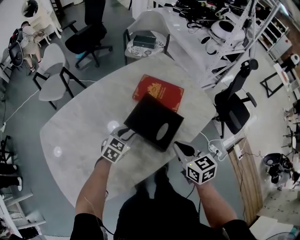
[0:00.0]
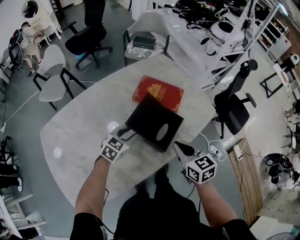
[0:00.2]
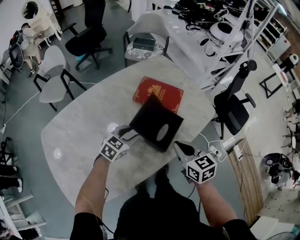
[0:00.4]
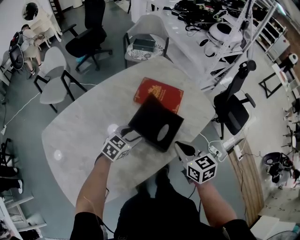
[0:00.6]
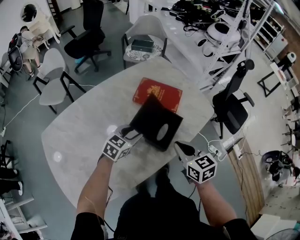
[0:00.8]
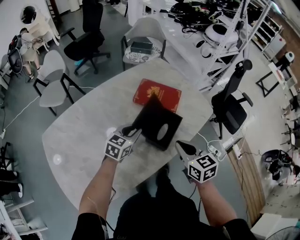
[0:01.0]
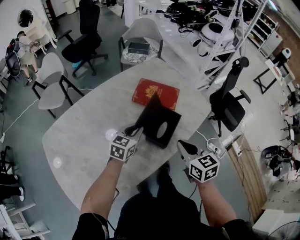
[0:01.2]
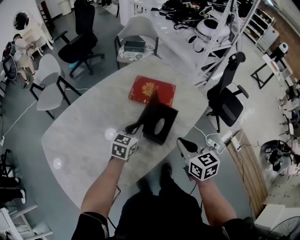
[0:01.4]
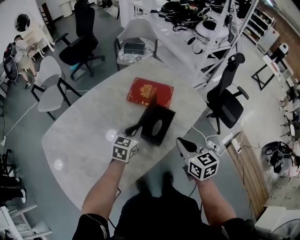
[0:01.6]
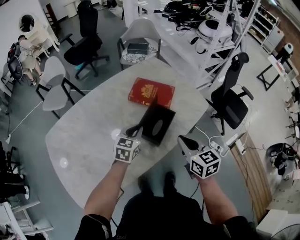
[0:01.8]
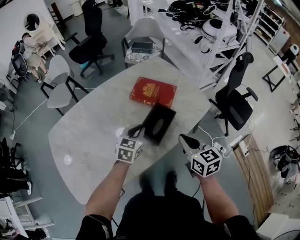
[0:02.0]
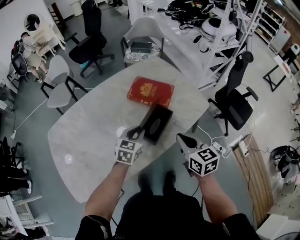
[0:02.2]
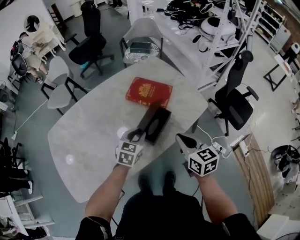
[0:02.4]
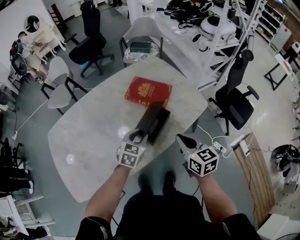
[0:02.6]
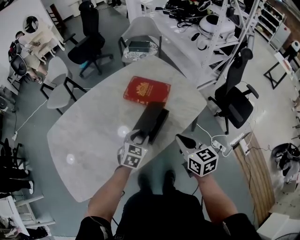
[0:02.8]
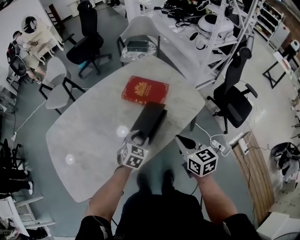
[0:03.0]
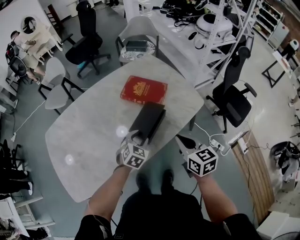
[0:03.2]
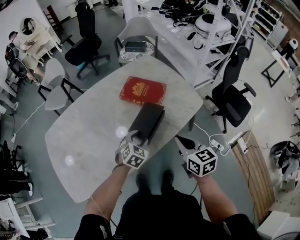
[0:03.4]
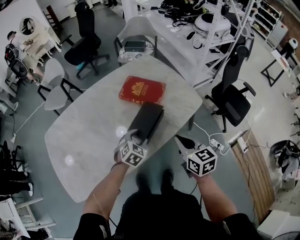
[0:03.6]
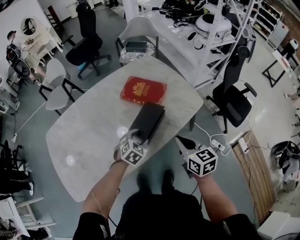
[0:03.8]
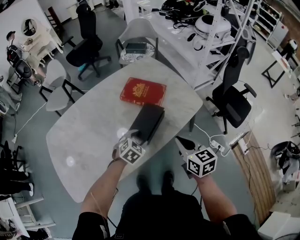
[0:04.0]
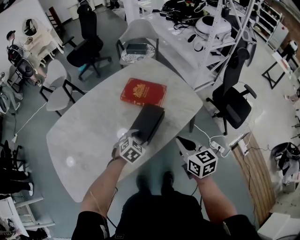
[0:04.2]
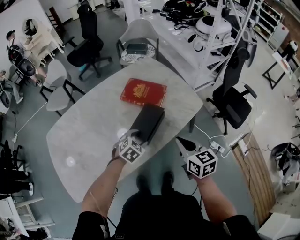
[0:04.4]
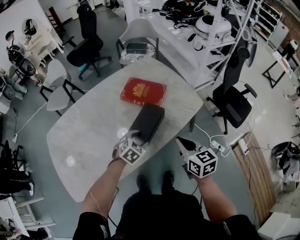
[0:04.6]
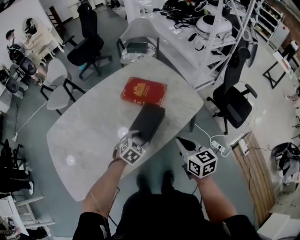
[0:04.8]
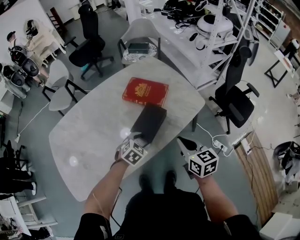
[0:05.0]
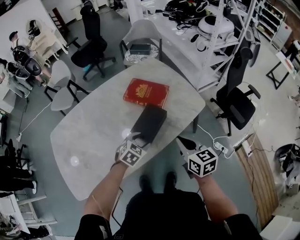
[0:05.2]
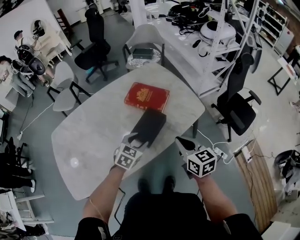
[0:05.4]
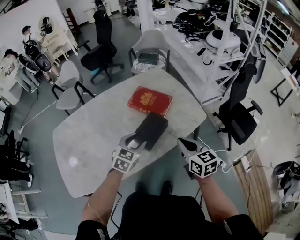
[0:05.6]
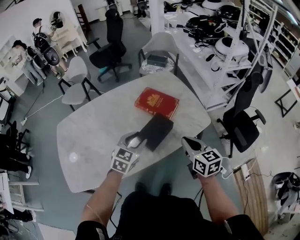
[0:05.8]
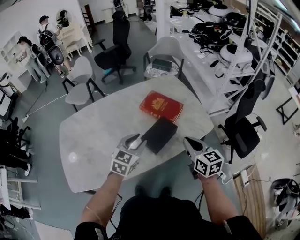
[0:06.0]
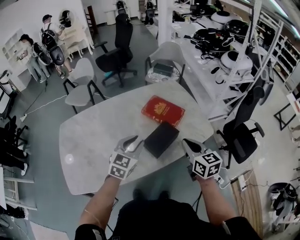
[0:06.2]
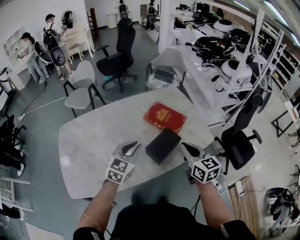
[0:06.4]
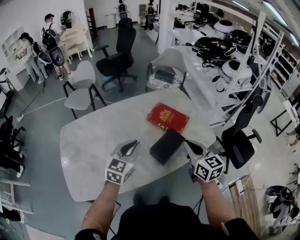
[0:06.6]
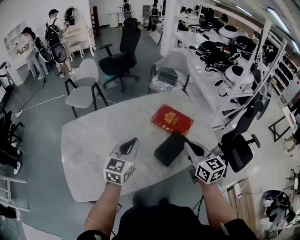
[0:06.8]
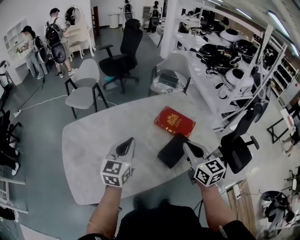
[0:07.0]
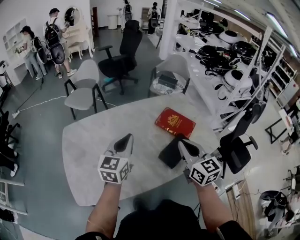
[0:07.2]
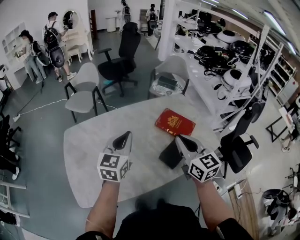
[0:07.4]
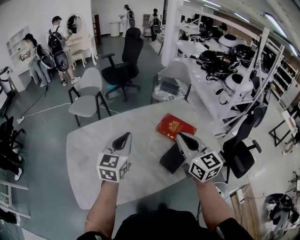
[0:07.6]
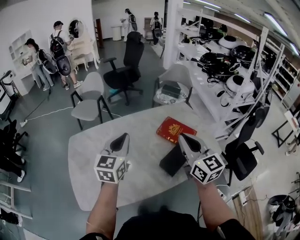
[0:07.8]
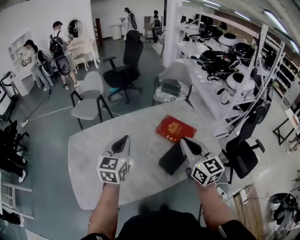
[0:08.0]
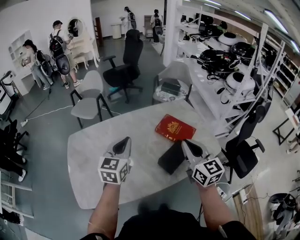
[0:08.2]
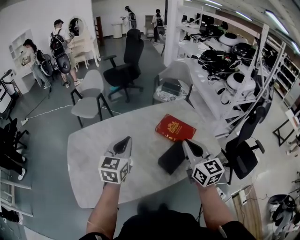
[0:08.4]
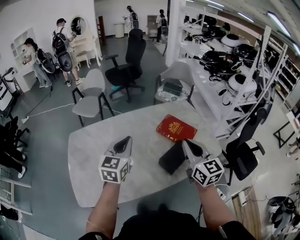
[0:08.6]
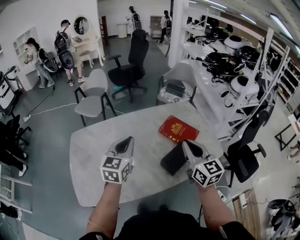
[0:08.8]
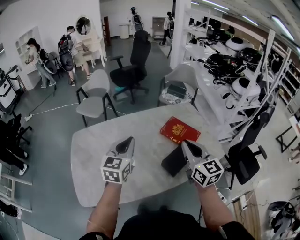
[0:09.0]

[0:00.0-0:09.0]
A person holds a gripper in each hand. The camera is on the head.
0:00.0 to 0:01.6: The left gripper heads upward and to the right, covering some 10 cm, and opens and closes again. Meanwhile the right gripper shifts by some 5 cm.
0:01.6 to 0:03.0: The left gripper heads to the right and downward, covering roughly 10 cm, swivels roughly 20 degrees, and opens its fingers; the right gripper goes approximately 10 cm to the right.
0:03.0 to 0:04.4: The grippers make only small movements.
0:04.4 to 0:06.0: The left gripper goes some 15 cm upward, turns by roughly 40 degrees, and closes its fingers; the right gripper changes place by some 5 cm.
0:06.0 to 0:07.6: The two grippers go about 25 cm to the left and upward. The right gripper changes its angle by approximately 20 degrees, while the left gripper rotates roughly 20 degrees, and closes up.

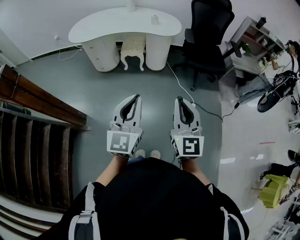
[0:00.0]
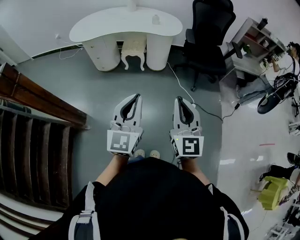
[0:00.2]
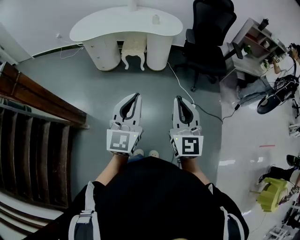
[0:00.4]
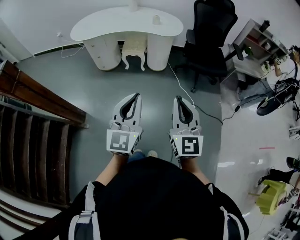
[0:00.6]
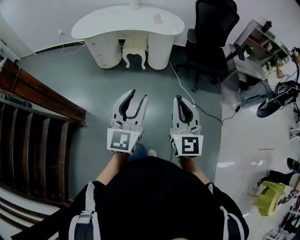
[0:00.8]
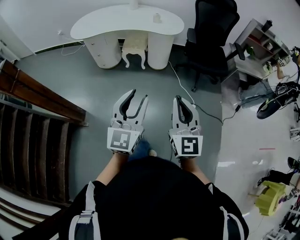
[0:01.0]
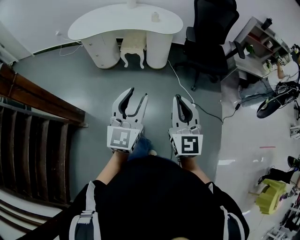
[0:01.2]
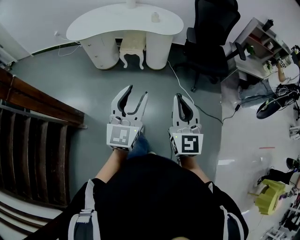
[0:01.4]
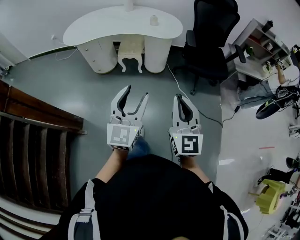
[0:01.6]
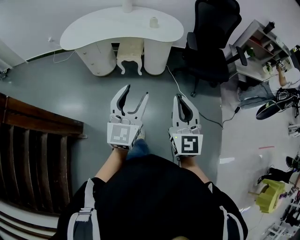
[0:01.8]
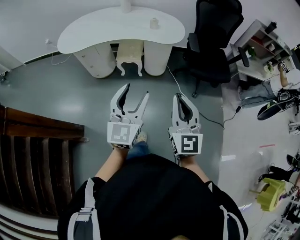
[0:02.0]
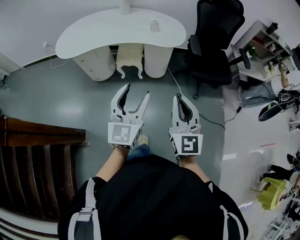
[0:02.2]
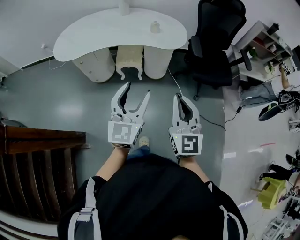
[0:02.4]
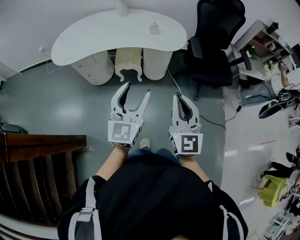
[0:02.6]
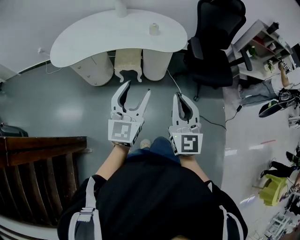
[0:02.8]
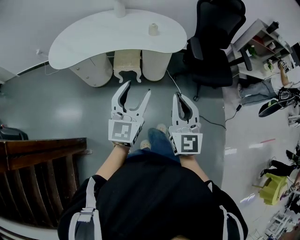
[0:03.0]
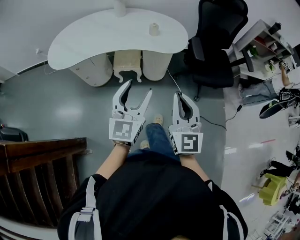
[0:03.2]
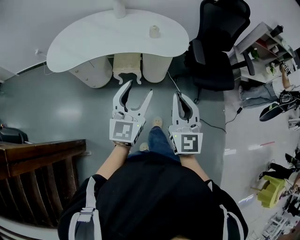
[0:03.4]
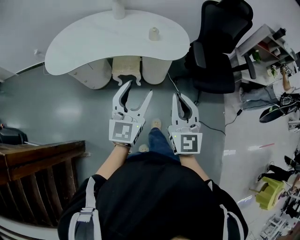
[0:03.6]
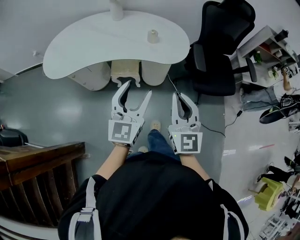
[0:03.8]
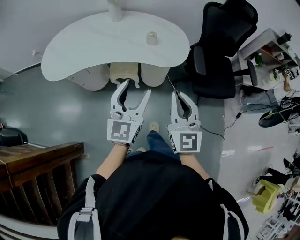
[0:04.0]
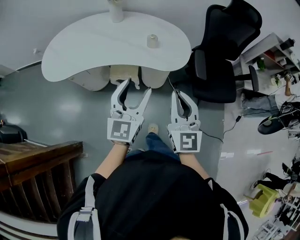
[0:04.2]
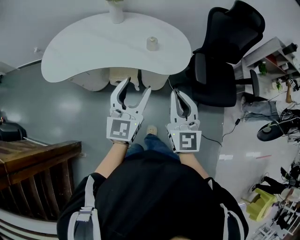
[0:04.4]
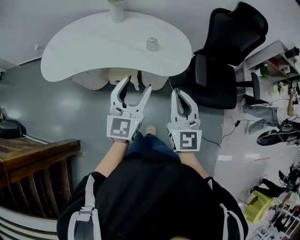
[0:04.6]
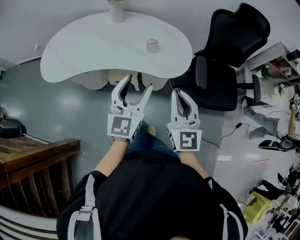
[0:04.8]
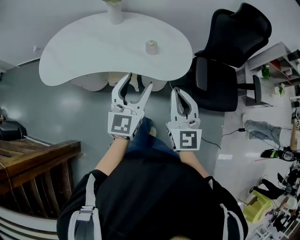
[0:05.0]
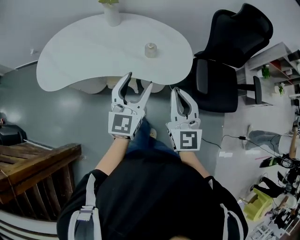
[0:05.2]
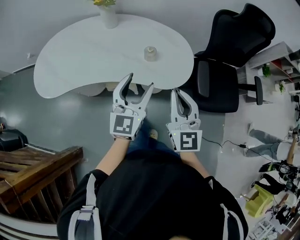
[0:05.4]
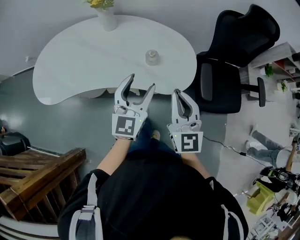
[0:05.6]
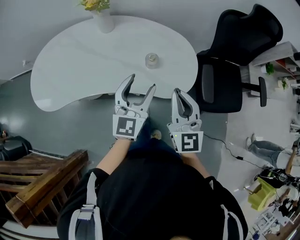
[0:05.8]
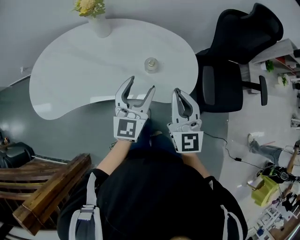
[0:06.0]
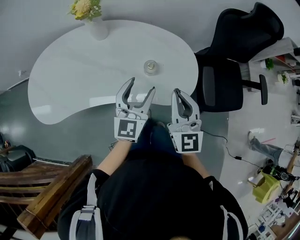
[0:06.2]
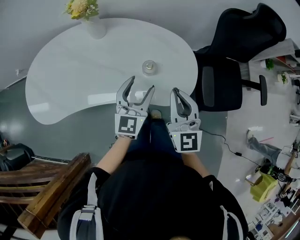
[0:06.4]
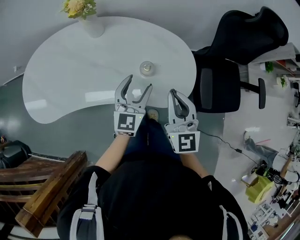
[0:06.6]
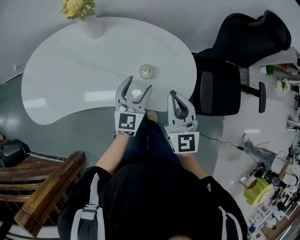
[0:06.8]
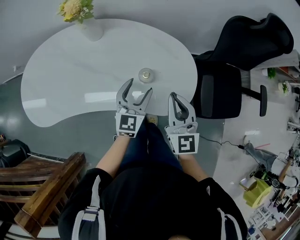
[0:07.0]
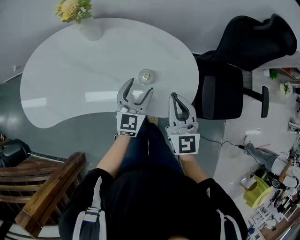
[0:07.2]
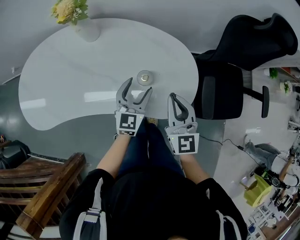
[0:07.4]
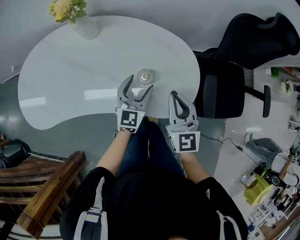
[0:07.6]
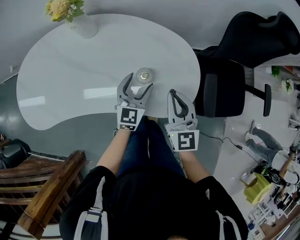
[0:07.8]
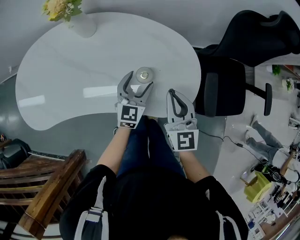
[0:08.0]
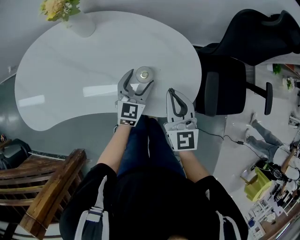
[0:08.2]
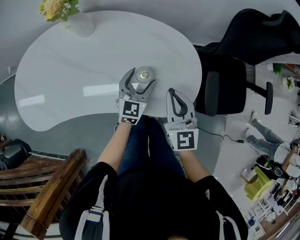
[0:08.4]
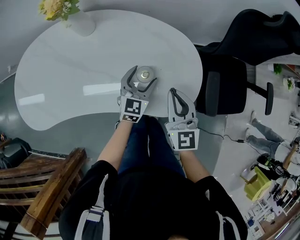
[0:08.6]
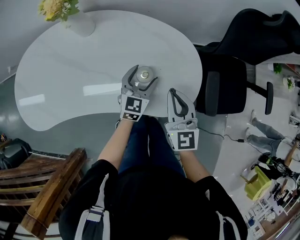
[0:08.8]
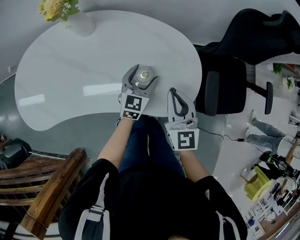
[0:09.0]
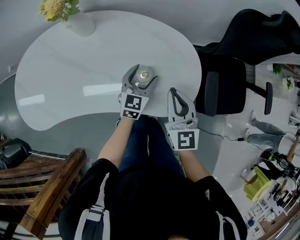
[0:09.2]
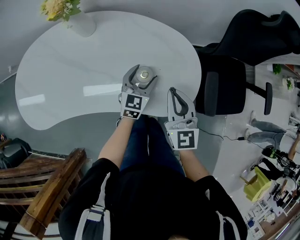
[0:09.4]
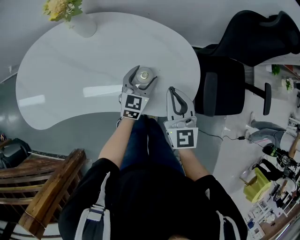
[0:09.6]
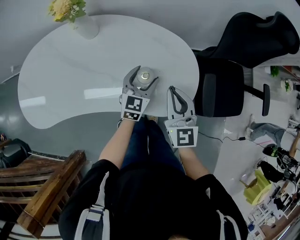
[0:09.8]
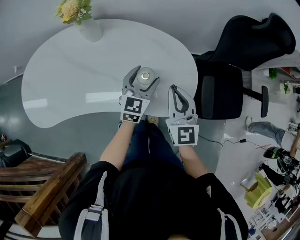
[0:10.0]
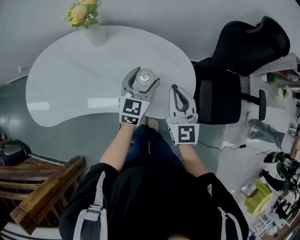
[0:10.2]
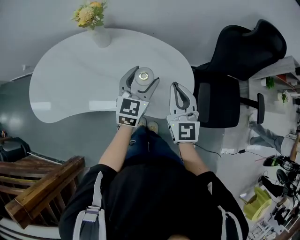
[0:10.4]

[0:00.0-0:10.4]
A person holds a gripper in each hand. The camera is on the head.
0:00.0 to 0:01.4: Both grippers travel together forward, about 5 cm. The left gripper opens its fingers.
0:01.4 to 0:03.0: The two grippers go some 30 cm forward.
0:03.0 to 0:04.4: The grippers both shift forward by approximately 20 cm.
0:04.4 to 0:06.0: Both grippers move forward, roughly 25 cm.
0:06.0 to 0:07.4: Both grippers travel together downward and forward, roughly 15 cm.
0:07.4 to 0:09.0: The left gripper is displaced downward by approximately 5 cm.
0:09.0 to 0:10.4: The right gripper moves upward, about 10 cm. The left gripper heads upward, covering about 20 cm.

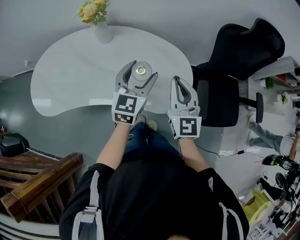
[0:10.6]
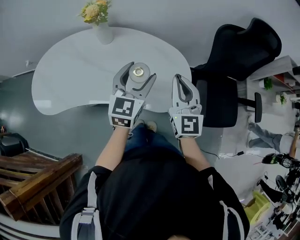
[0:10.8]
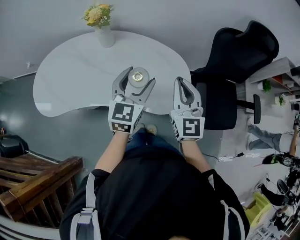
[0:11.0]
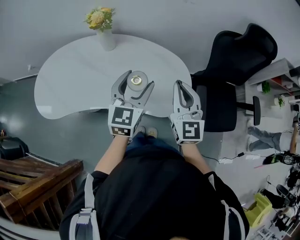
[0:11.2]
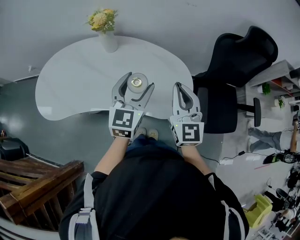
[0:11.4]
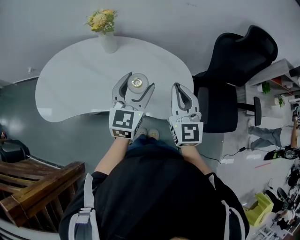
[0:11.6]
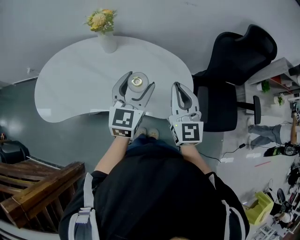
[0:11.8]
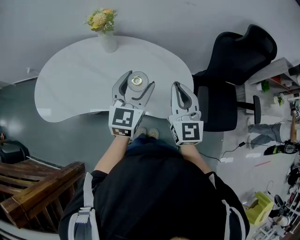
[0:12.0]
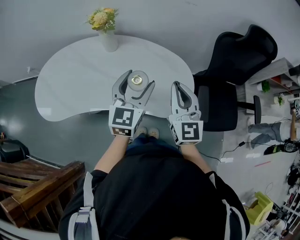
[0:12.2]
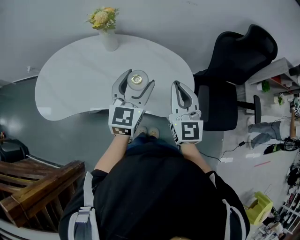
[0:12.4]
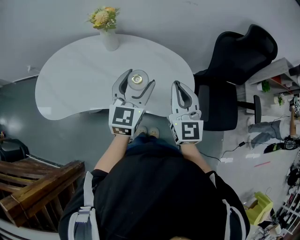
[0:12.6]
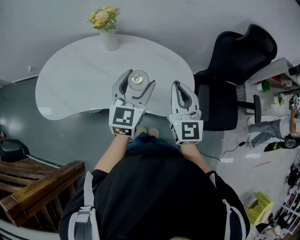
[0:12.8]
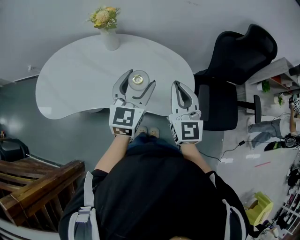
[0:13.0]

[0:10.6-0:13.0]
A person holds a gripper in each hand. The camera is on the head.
0:10.6 to 0:11.8: The right gripper ends up roughly 5 cm from where it was. The left gripper is displaced upward by some 5 cm.
0:11.8 to 0:13.0: The grippers stay close to where they were, moving slightly.

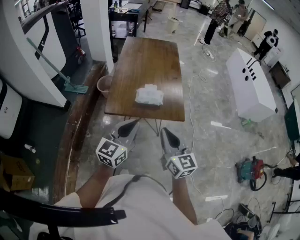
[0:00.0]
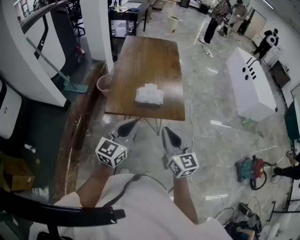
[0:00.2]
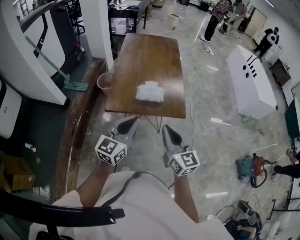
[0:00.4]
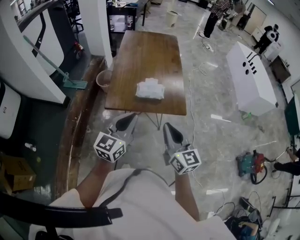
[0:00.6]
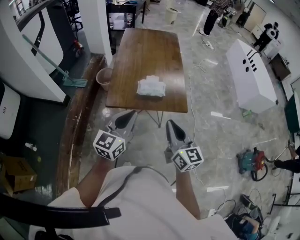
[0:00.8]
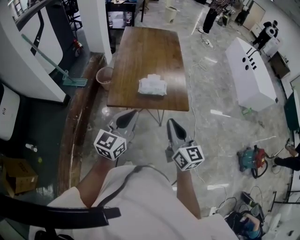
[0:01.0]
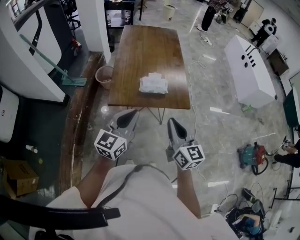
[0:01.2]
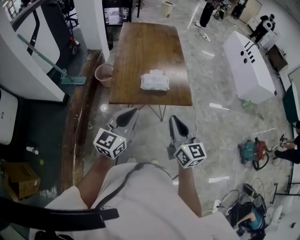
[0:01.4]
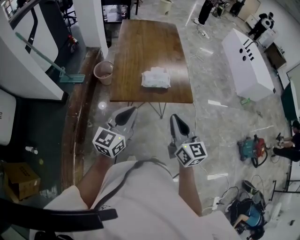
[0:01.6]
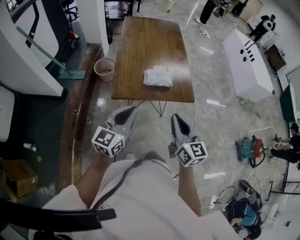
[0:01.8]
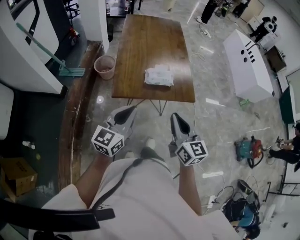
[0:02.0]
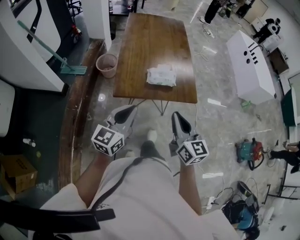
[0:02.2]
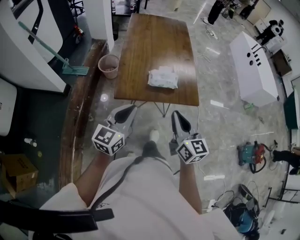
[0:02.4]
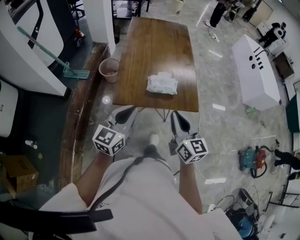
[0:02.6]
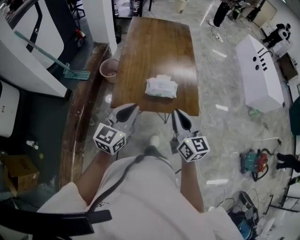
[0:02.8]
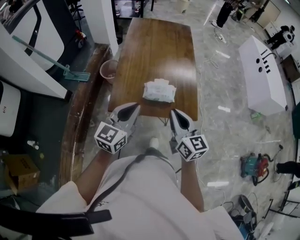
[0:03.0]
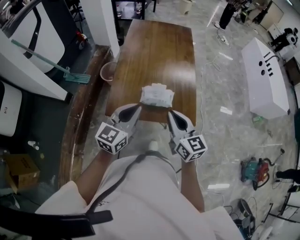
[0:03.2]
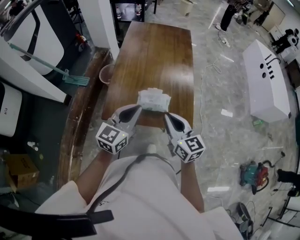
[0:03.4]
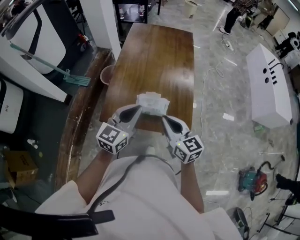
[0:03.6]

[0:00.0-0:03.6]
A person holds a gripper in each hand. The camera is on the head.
0:00.0 to 0:01.8: The right gripper heads to the left, covering roughly 5 cm; the left gripper travels to the left by some 10 cm.
0:01.8 to 0:03.6: The right gripper moves forward, some 25 cm, and swivels roughly 30 degrees; the left gripper heads forward and to the right, covering about 25 cm.
